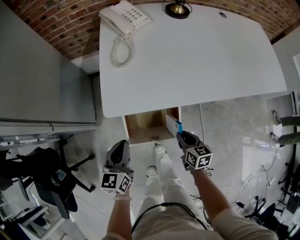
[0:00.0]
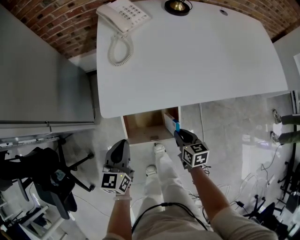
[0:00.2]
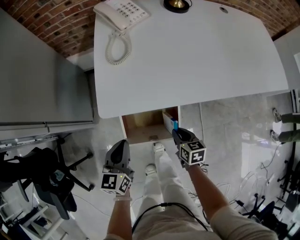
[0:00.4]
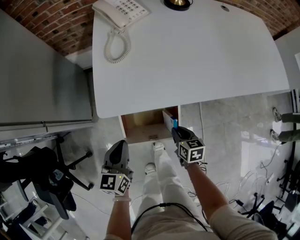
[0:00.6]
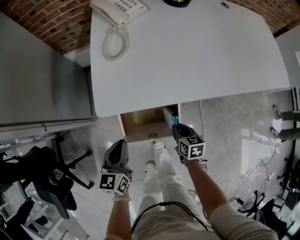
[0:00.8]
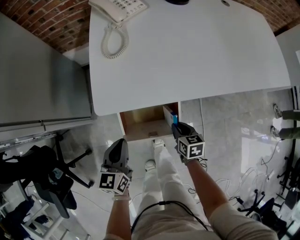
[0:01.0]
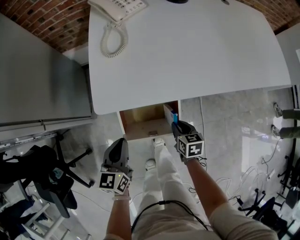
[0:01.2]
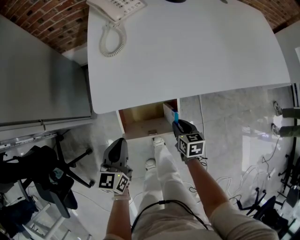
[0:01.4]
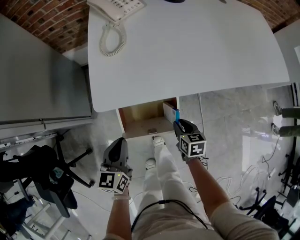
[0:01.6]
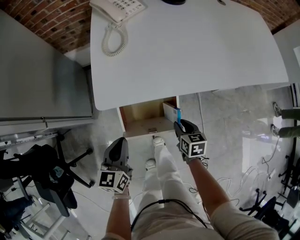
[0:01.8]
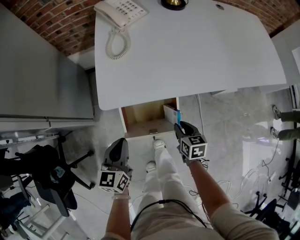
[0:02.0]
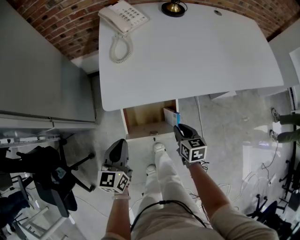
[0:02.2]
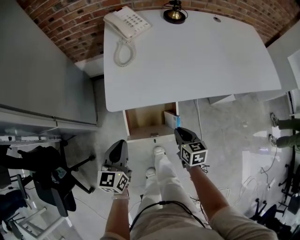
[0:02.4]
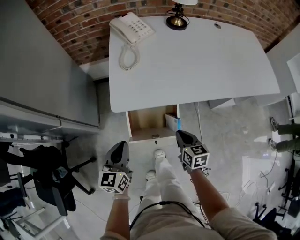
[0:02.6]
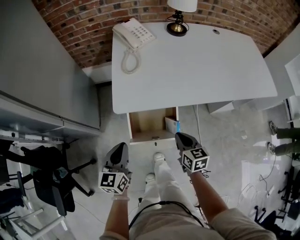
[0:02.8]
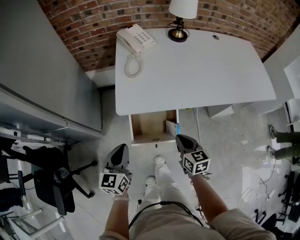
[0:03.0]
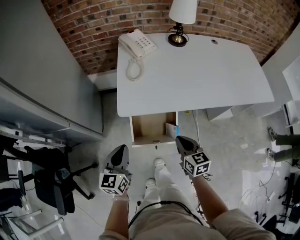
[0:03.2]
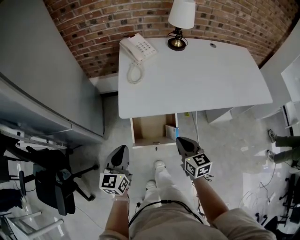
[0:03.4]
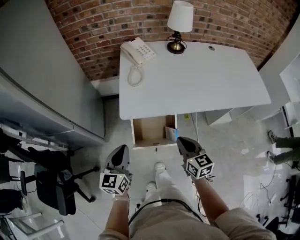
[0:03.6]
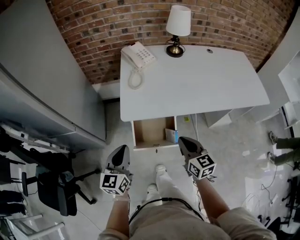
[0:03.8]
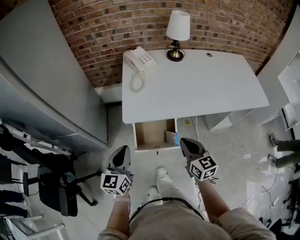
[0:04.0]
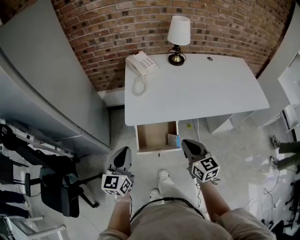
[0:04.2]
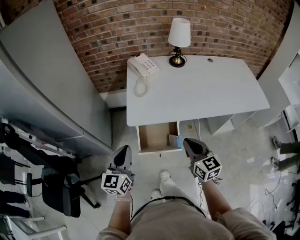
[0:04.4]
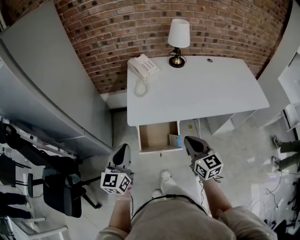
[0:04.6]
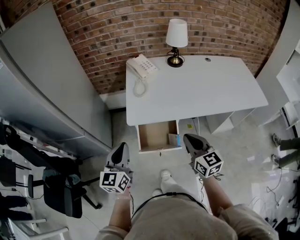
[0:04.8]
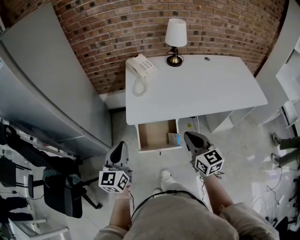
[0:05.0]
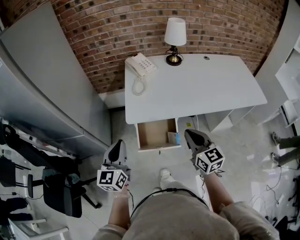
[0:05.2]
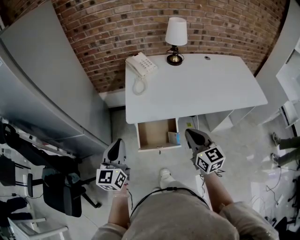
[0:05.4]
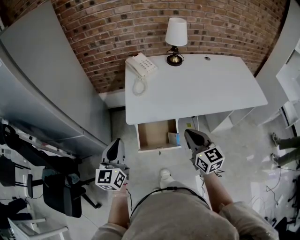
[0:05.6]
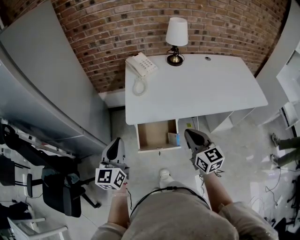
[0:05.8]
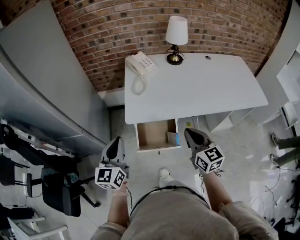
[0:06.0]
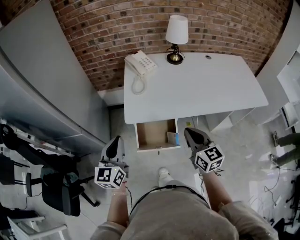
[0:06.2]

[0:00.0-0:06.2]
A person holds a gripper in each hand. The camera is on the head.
0:00.0 to 0:01.6: The right gripper ends up approximately 5 cm from where it was.
0:01.6 to 0:03.2: The right gripper moves upward, about 20 cm, changes its angle by approximately 30 degrees, and closes up, while the left gripper travels upward by about 10 cm.
0:03.2 to 0:04.6: Both grippers move upward, roughly 15 cm.
0:04.6 to 0:06.2: The grippers make only small movements.

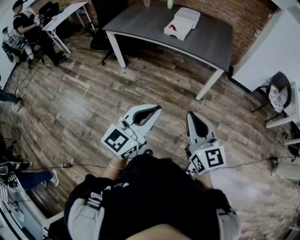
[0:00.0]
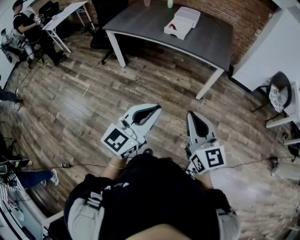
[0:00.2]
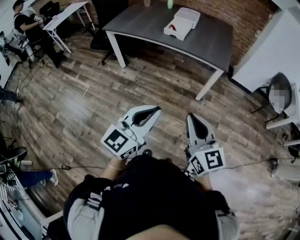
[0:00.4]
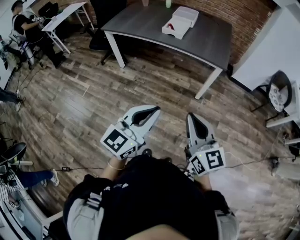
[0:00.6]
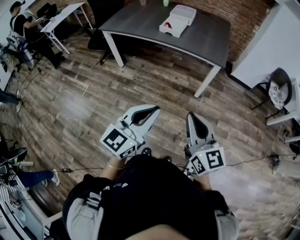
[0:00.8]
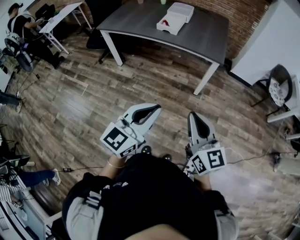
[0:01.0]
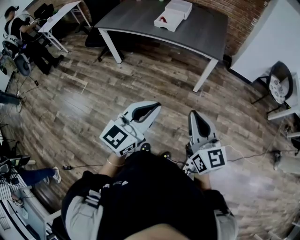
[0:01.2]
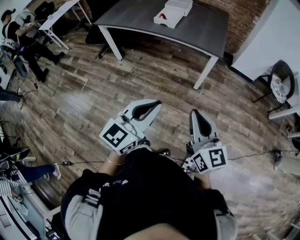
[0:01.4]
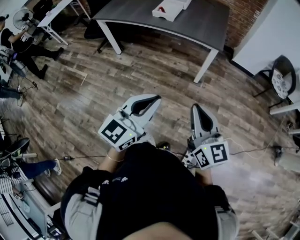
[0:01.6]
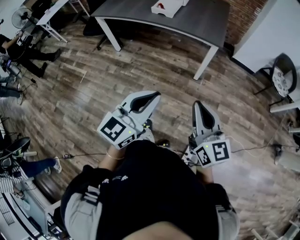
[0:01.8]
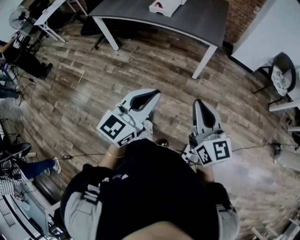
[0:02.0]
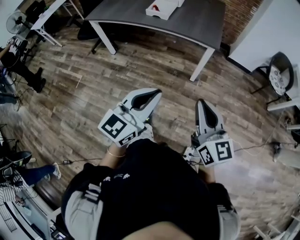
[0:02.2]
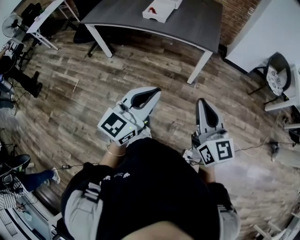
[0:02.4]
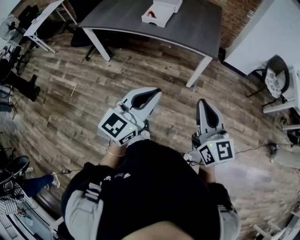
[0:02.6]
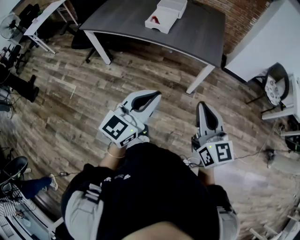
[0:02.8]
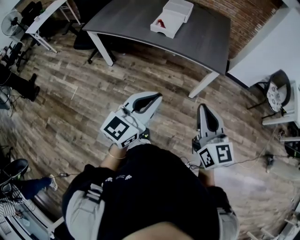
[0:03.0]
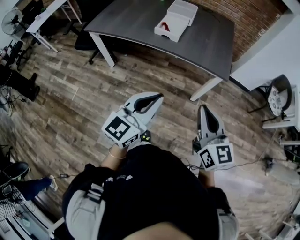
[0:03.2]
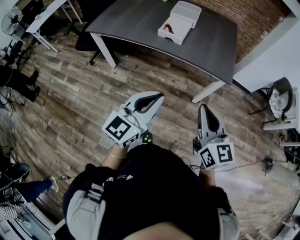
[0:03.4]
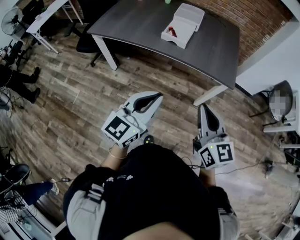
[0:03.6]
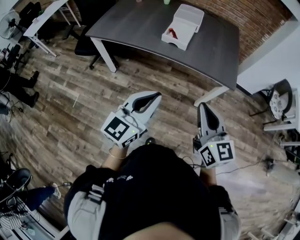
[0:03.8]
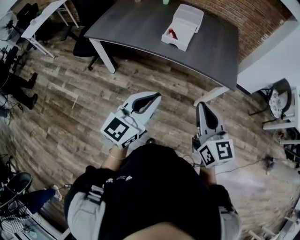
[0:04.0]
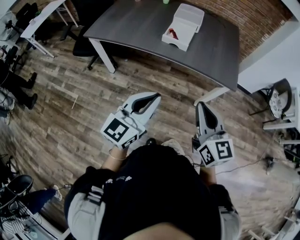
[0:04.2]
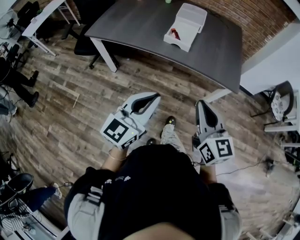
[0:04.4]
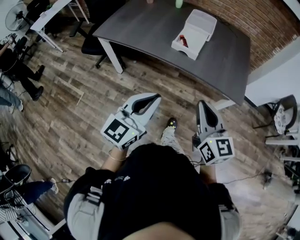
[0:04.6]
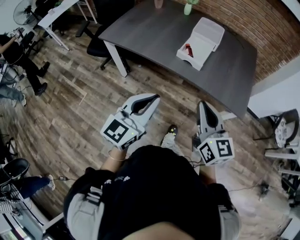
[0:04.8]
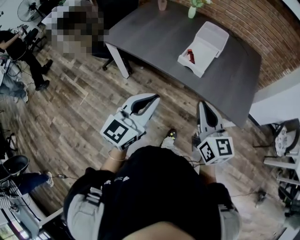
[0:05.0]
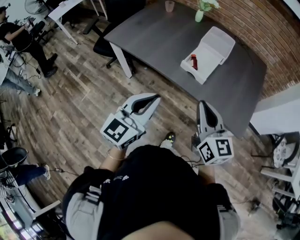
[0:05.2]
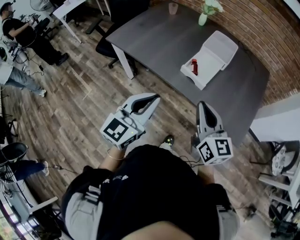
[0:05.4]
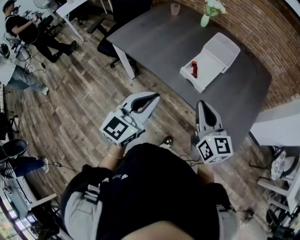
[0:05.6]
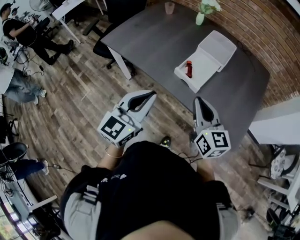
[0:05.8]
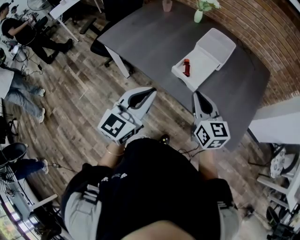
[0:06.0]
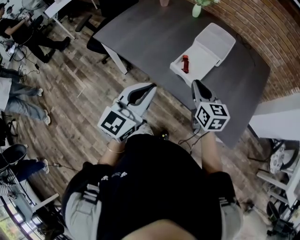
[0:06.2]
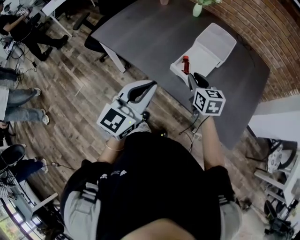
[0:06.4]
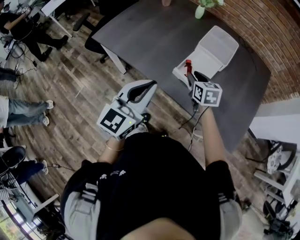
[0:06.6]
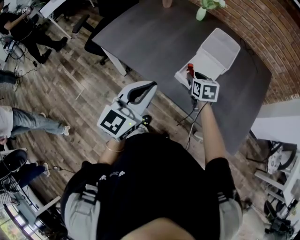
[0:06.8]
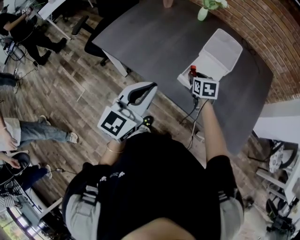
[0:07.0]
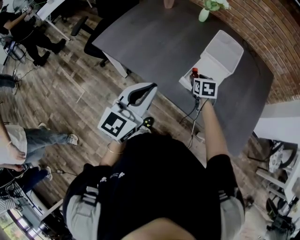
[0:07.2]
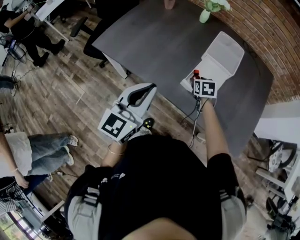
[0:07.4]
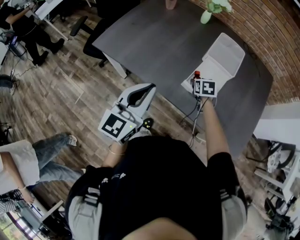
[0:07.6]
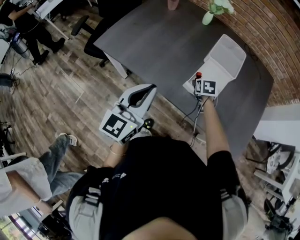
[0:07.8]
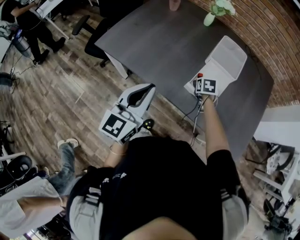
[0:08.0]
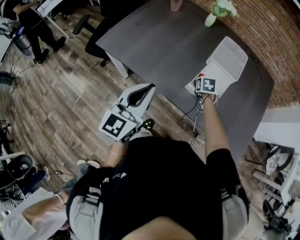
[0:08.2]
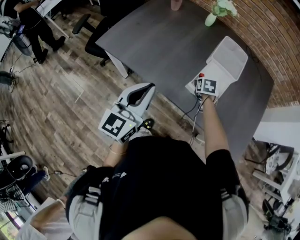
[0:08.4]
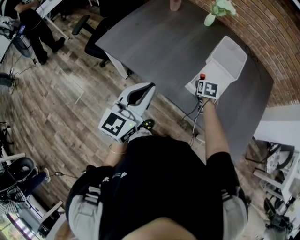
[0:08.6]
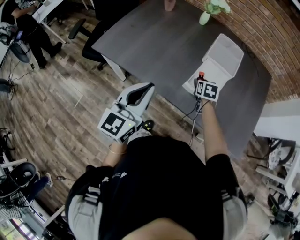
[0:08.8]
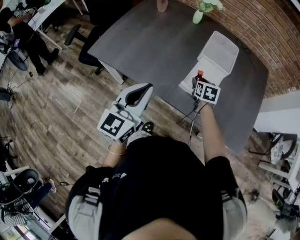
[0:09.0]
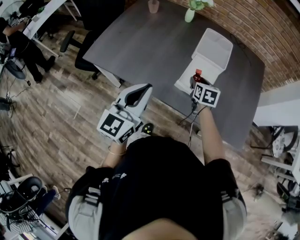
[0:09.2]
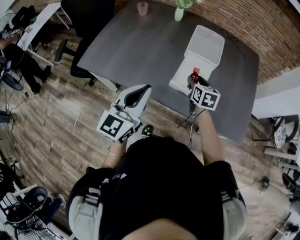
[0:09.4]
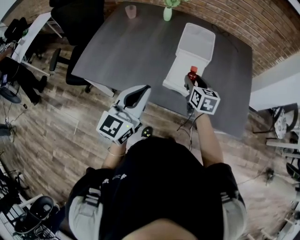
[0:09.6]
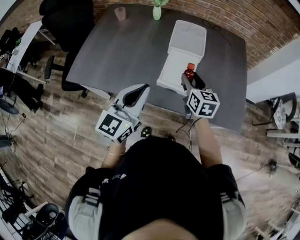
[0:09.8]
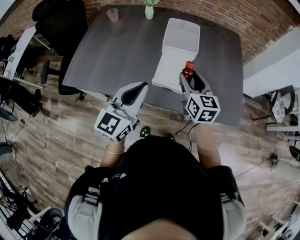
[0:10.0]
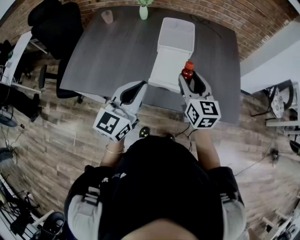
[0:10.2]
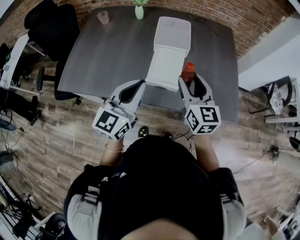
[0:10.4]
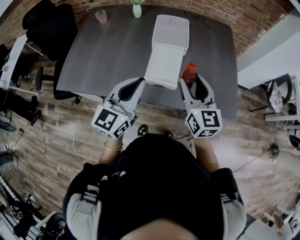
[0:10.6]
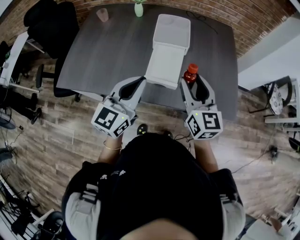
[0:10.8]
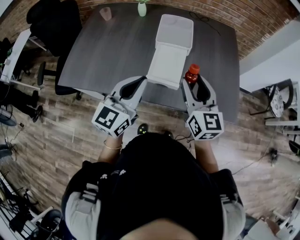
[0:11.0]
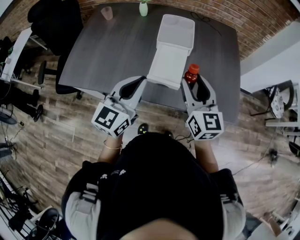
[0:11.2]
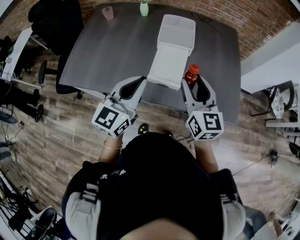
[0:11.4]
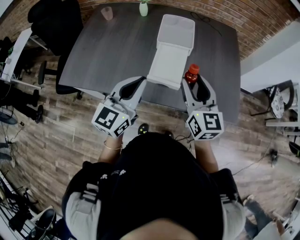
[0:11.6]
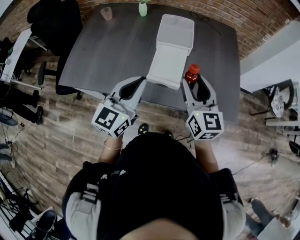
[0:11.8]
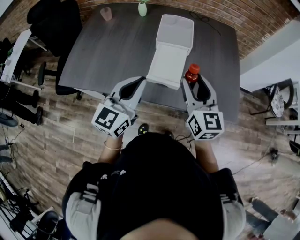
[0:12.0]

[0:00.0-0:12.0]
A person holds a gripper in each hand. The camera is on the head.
0:00.0 to 0:01.6: Both grippers travel together to the right, approximately 10 cm.
0:01.6 to 0:03.0: The left gripper heads forward and to the left, covering approximately 20 cm. The right gripper heads forward, covering some 20 cm.
0:03.0 to 0:04.4: Both grippers move to the left and forward, roughly 20 cm.
0:04.4 to 0:06.0: Both grippers travel together forward, about 30 cm. The left gripper changes its angle by roughly 20 degrees.
0:06.0 to 0:07.6: The left gripper is displaced to the left and forward by about 15 cm, while the right gripper is displaced forward and downward by approximately 30 cm, tilts its fingers some 40 degrees downward, and opens up.
0:07.6 to 0:09.0: The grippers move only a little.
0:09.0 to 0:10.4: The left gripper moves to the right and forward, approximately 15 cm. Meanwhile the right gripper goes roughly 25 cm upward, to the right and backward, and tilts its fingers some 40 degrees upward.
0:10.4 to 0:12.0: The grippers make only small movements.

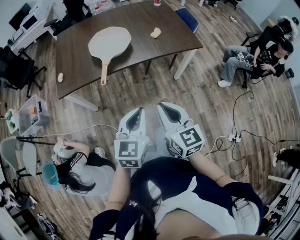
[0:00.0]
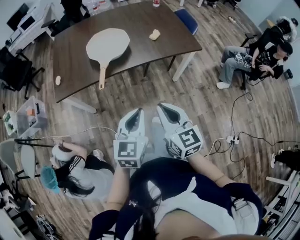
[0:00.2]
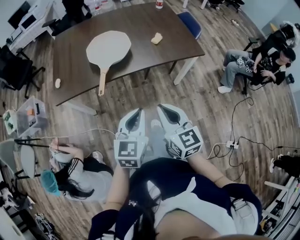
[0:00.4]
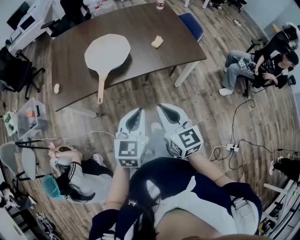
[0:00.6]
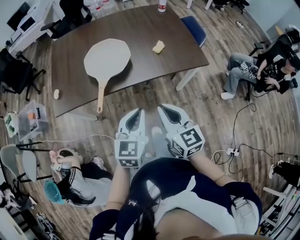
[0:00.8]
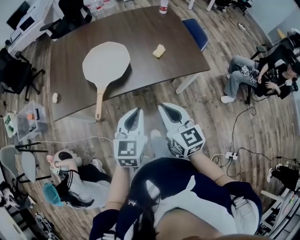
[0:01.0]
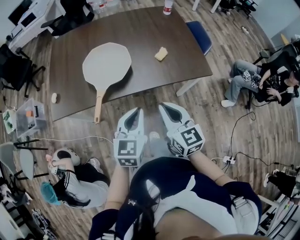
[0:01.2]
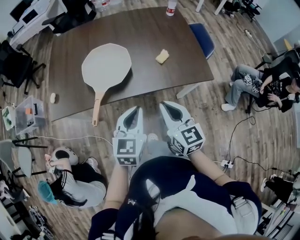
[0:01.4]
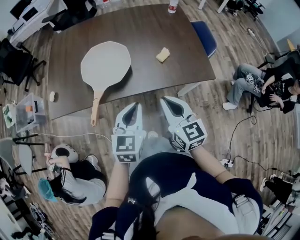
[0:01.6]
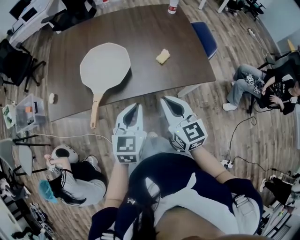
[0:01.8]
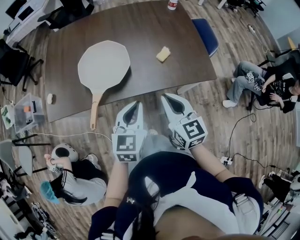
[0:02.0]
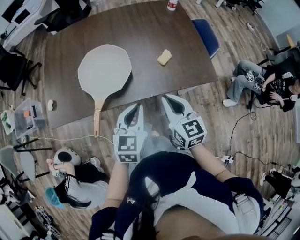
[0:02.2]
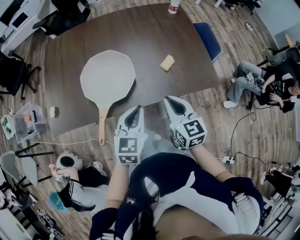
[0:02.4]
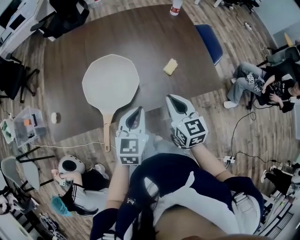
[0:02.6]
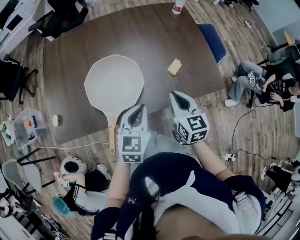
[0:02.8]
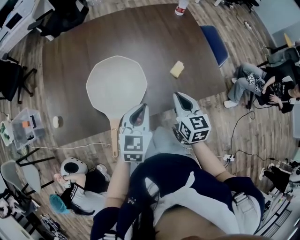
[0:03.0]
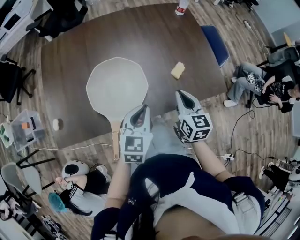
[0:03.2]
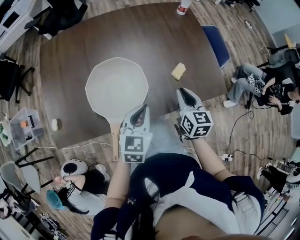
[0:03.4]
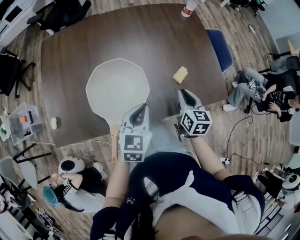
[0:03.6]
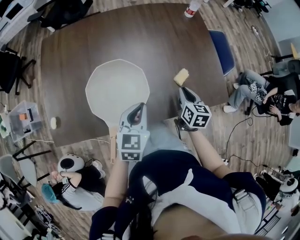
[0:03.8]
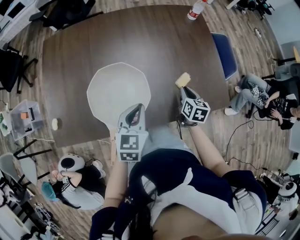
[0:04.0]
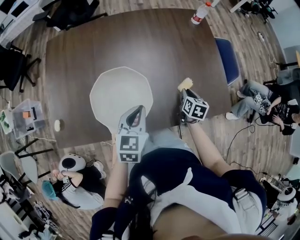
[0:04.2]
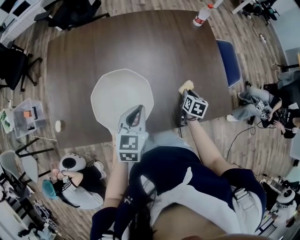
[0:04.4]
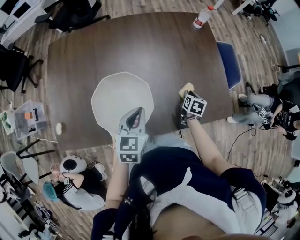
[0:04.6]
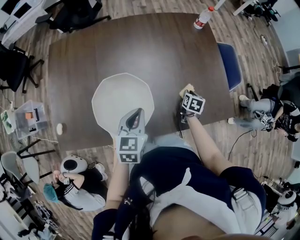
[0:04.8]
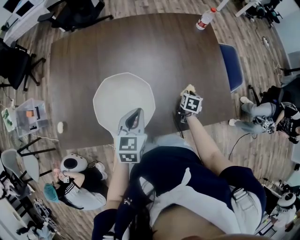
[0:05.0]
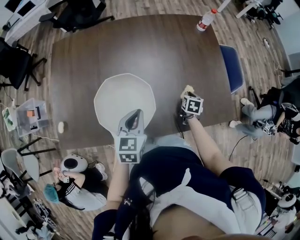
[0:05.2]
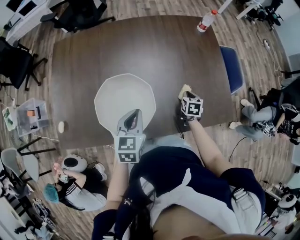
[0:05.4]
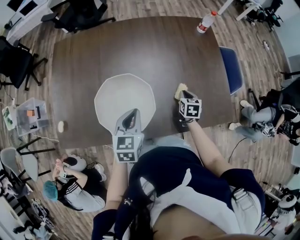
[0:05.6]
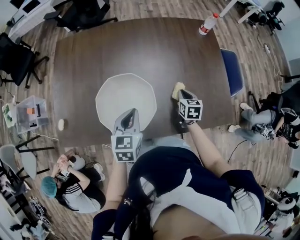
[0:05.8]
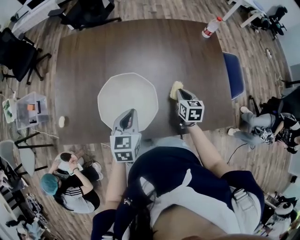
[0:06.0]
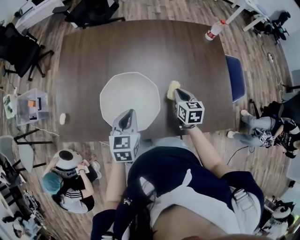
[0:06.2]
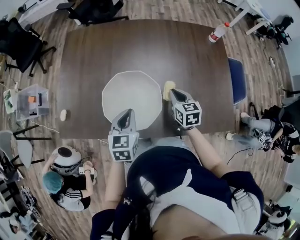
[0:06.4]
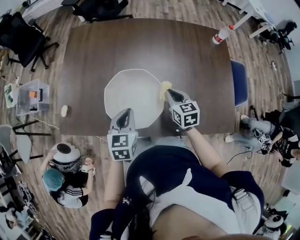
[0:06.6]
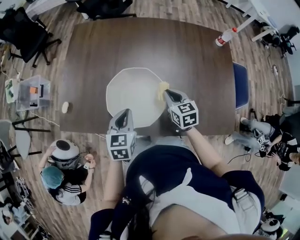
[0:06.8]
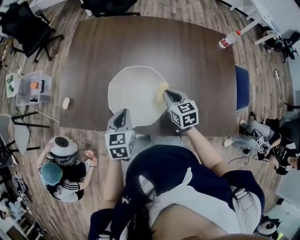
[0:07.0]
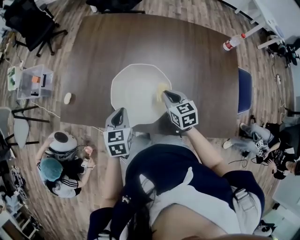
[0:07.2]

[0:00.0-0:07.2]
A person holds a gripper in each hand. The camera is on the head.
0:00.0 to 0:01.4: The two grippers go approximately 35 cm forward.
0:01.4 to 0:02.8: Both grippers move forward, approximately 20 cm.
0:02.8 to 0:04.4: The right gripper is displaced forward and downward by some 30 cm, and swivels roughly 40 degrees. Meanwhile the left gripper is displaced forward and to the left by approximately 15 cm.
0:04.4 to 0:05.8: The right gripper is displaced to the left by roughly 5 cm, and swivels approximately 20 degrees.
0:05.8 to 0:07.2: The left gripper changes place by some 15 cm, and changes its angle by approximately 20 degrees. The right gripper shifts by about 20 cm, and rotates some 40 degrees.
